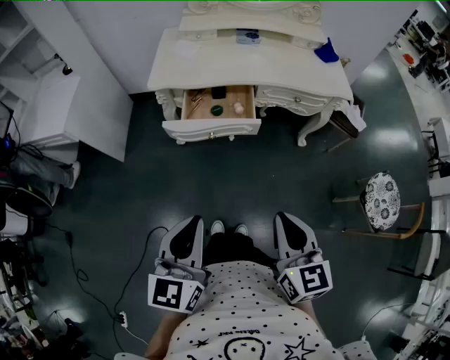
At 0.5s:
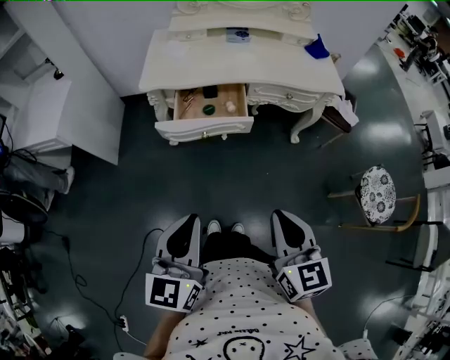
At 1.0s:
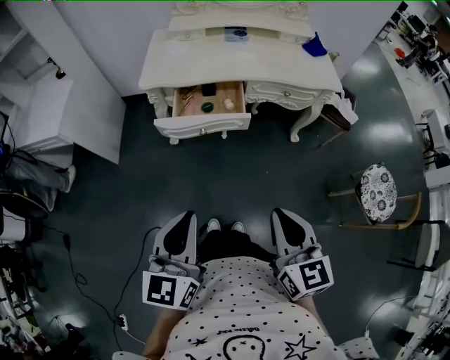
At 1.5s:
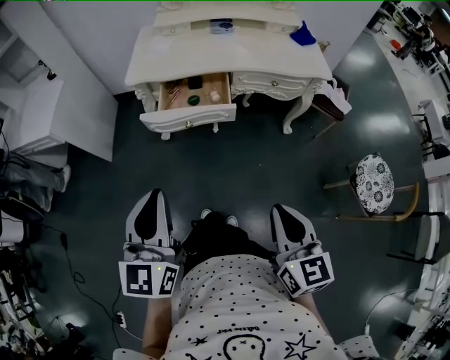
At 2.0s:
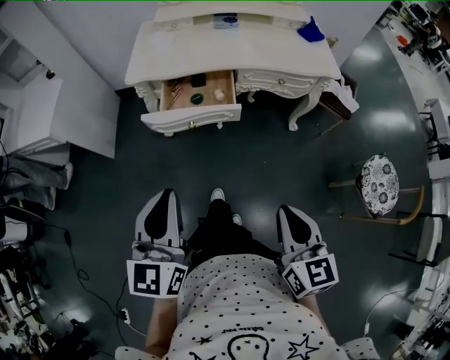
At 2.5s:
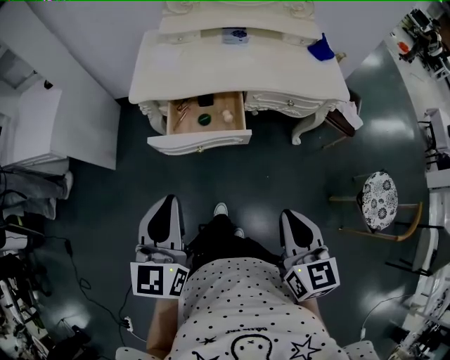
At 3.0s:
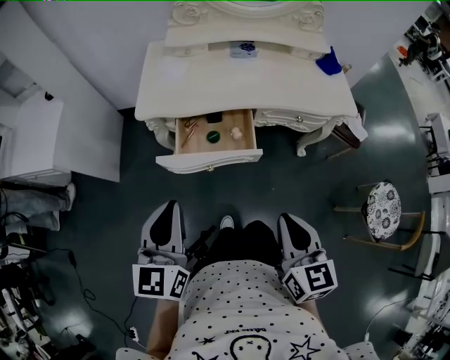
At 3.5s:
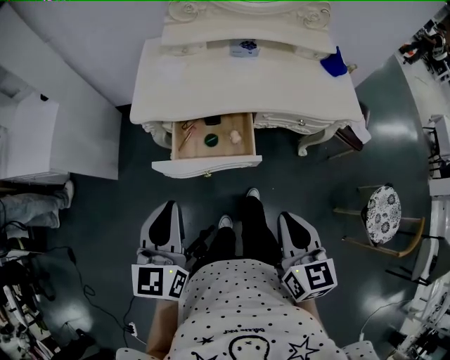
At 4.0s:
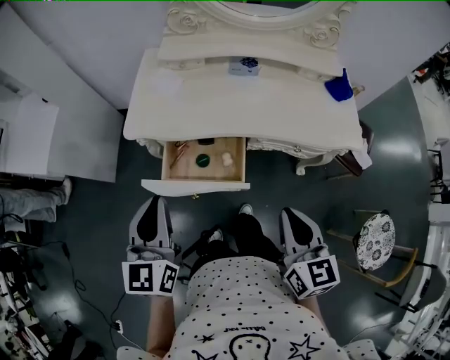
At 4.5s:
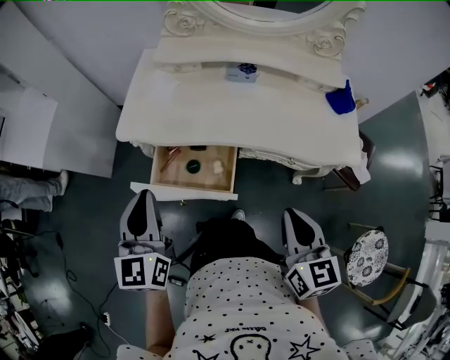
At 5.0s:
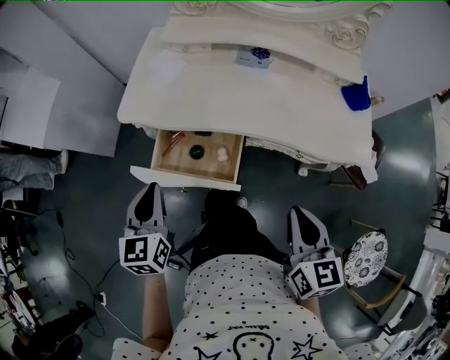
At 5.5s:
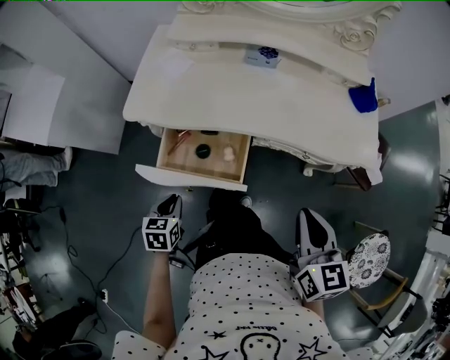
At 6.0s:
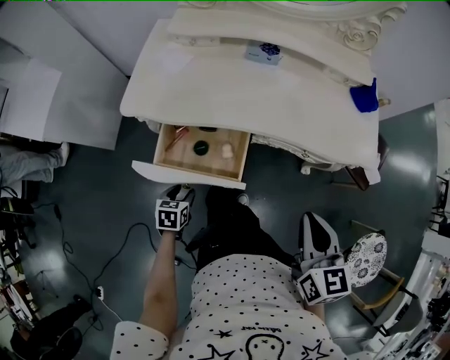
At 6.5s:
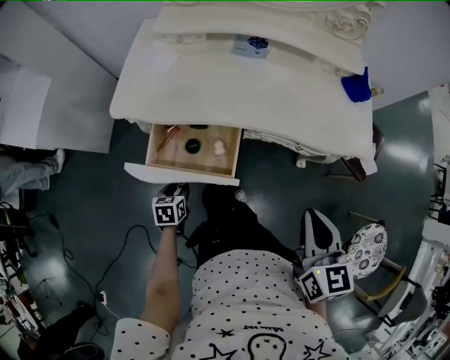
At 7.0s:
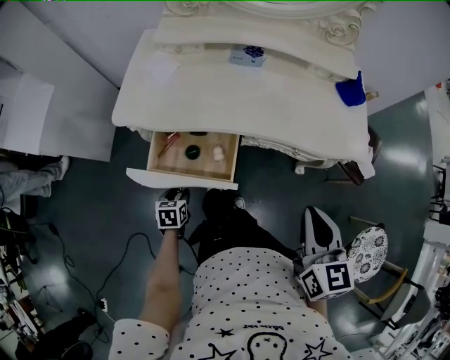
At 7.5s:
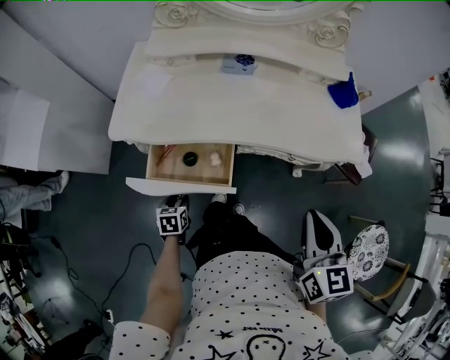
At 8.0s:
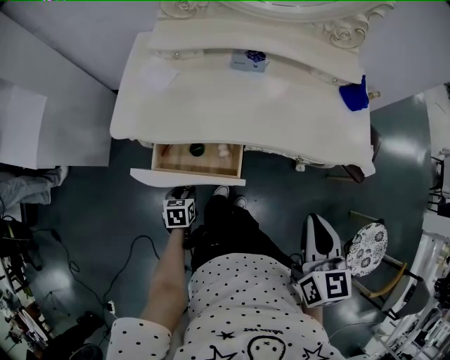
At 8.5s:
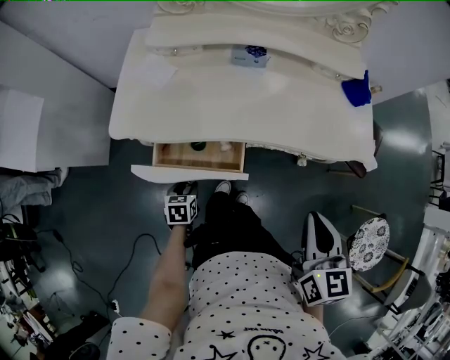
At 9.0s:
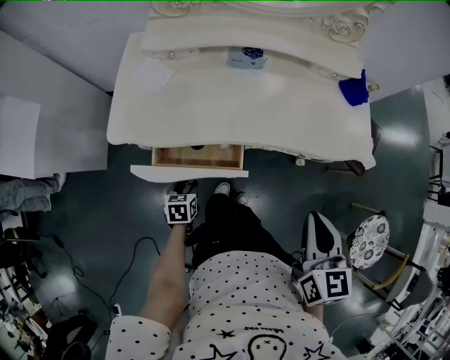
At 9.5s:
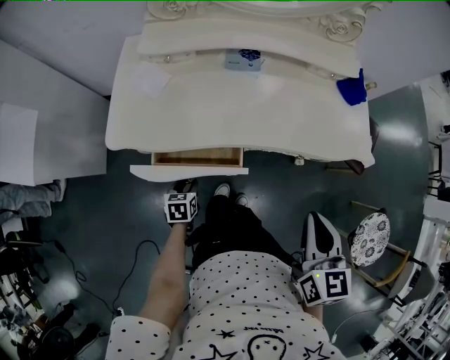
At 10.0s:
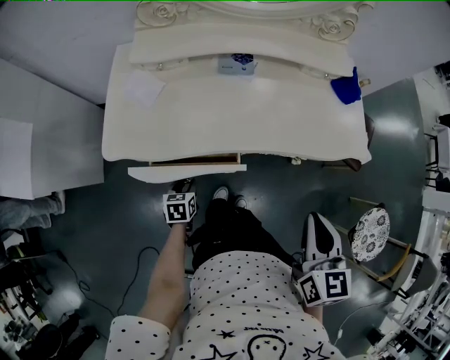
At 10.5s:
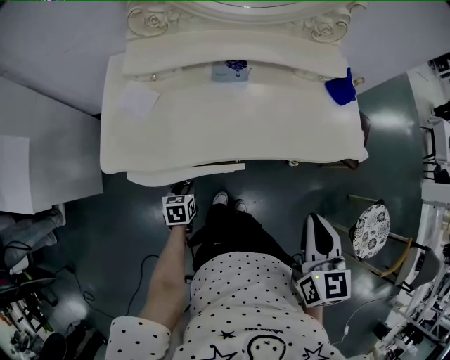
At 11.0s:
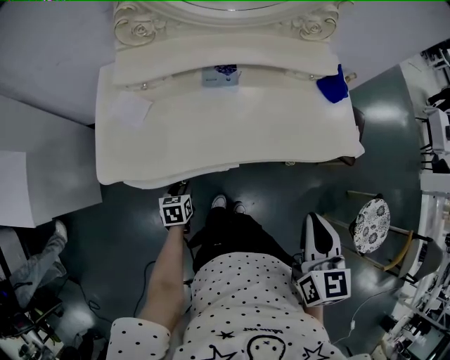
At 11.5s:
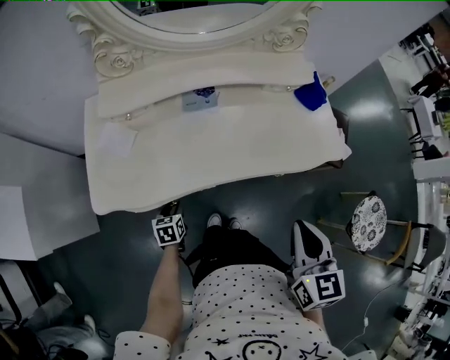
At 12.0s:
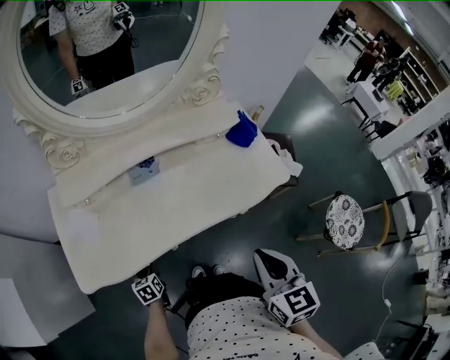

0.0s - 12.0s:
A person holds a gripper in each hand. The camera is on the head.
0.0s - 2.0s: The right gripper shifts some 5 cm to the right.
2.0s - 4.0s: Both grippers move forward, about 30 cm.
4.0s - 6.0s: The left gripper is displaced downward by about 35 cm, tips its fingers downward by approximately 50 degrees, and opens. Meanwhile the right gripper heads to the right, covering approximately 10 cm.
6.0s - 8.0s: The left gripper goes about 5 cm forward.
8.0s - 10.0s: The left gripper is displaced forward by roughly 5 cm.
10.0s - 12.0s: The left gripper travels forward by some 5 cm.

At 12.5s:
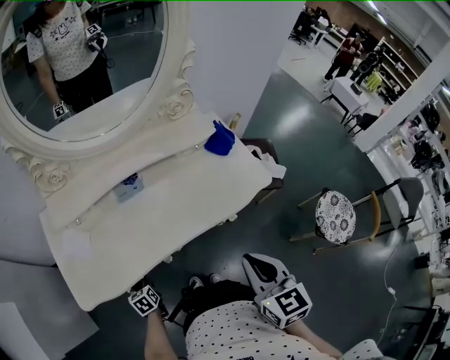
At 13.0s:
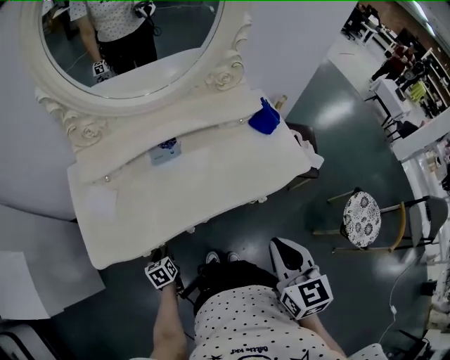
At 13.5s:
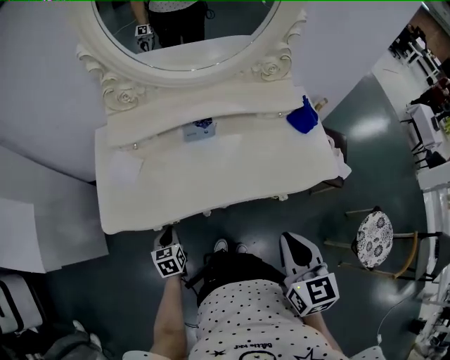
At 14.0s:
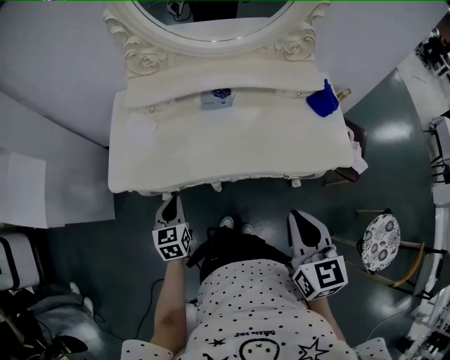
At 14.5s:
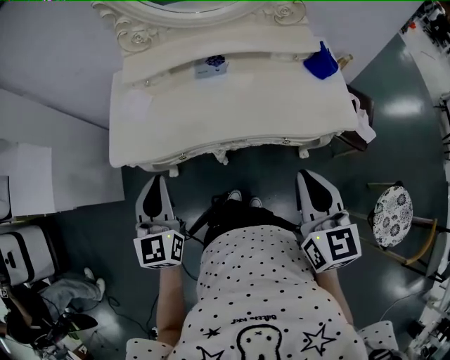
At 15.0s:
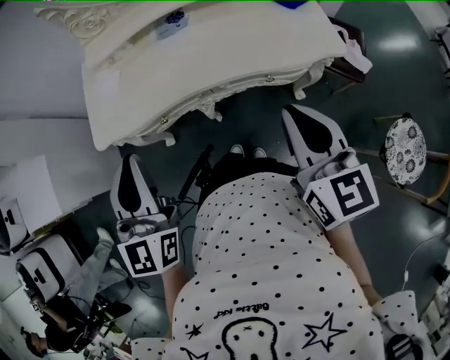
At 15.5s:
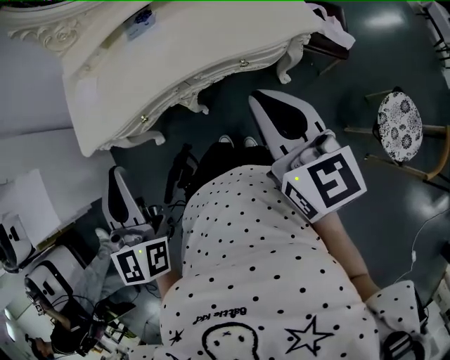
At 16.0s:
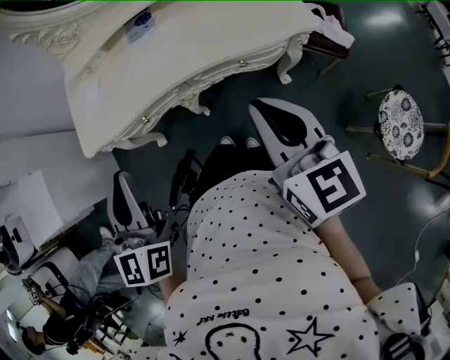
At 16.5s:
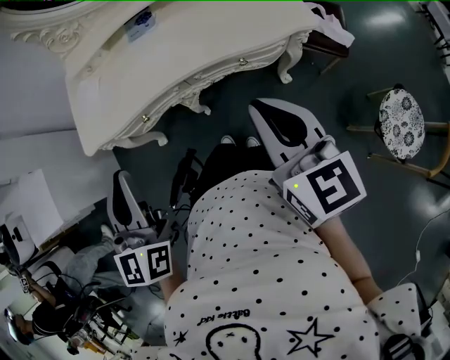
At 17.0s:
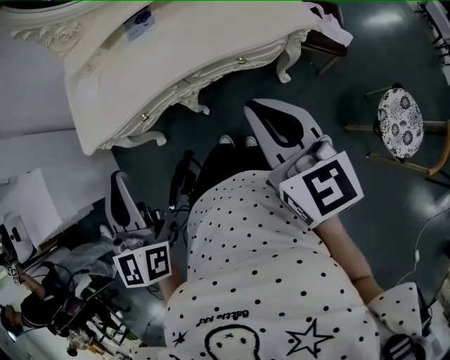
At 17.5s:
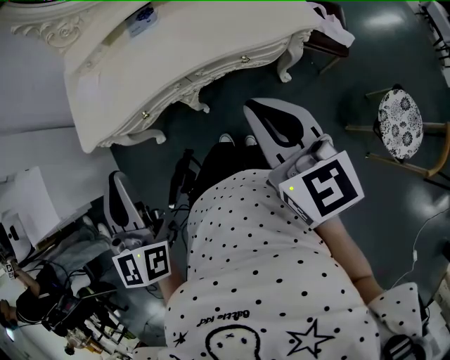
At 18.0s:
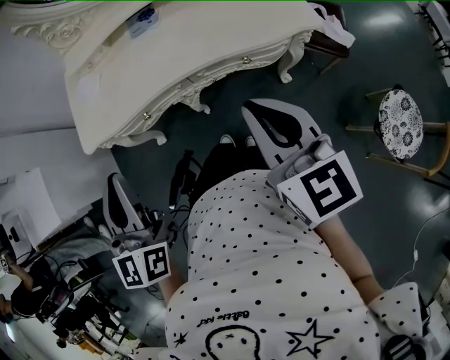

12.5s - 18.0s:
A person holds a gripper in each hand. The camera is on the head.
12.5s - 14.5s: The left gripper is displaced upward by some 35 cm, tips its fingers upward by about 40 degrees, and closes its fingers; the right gripper changes its angle by about 20 degrees.
14.5s - 16.0s: The left gripper shifts about 10 cm backward, to the right and upward; the right gripper shifts about 5 cm backward.
16.0s - 18.0s: There are only small adjustments of the grippers.

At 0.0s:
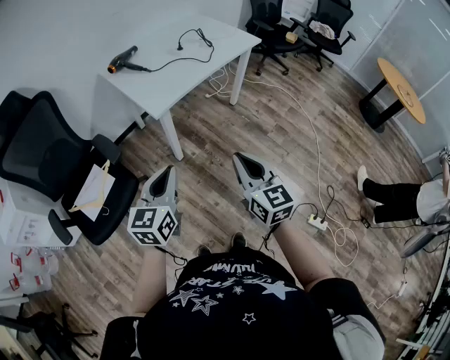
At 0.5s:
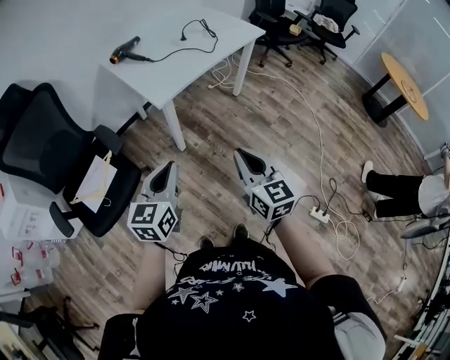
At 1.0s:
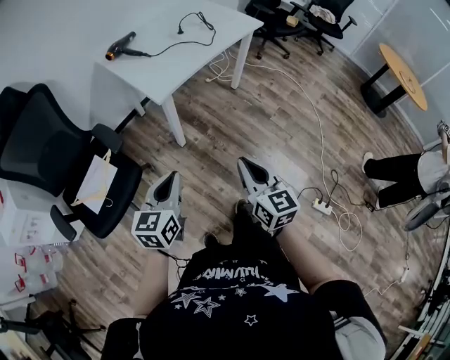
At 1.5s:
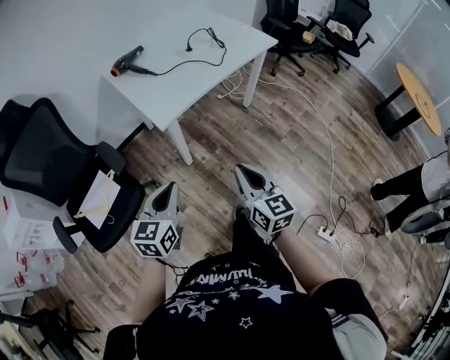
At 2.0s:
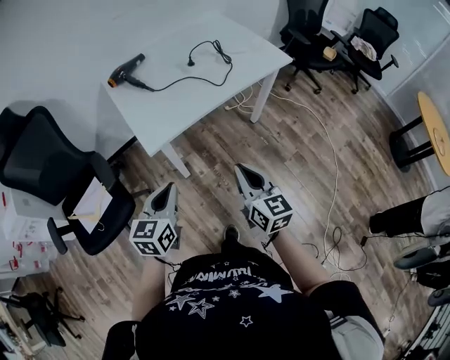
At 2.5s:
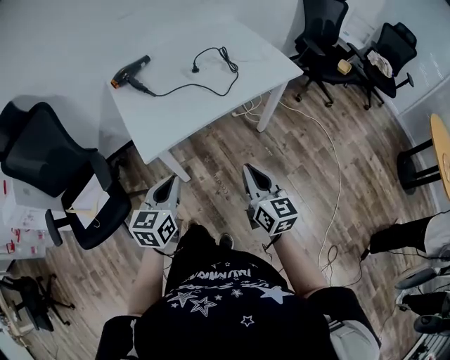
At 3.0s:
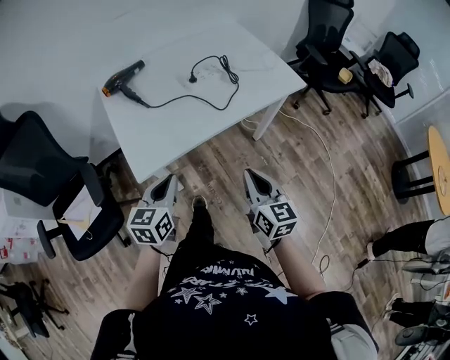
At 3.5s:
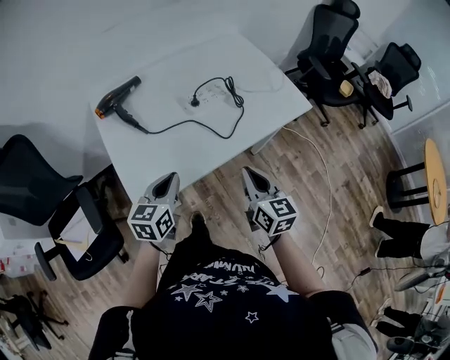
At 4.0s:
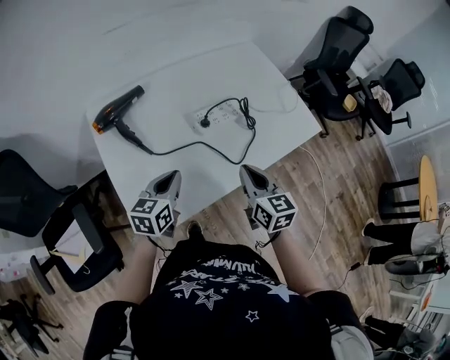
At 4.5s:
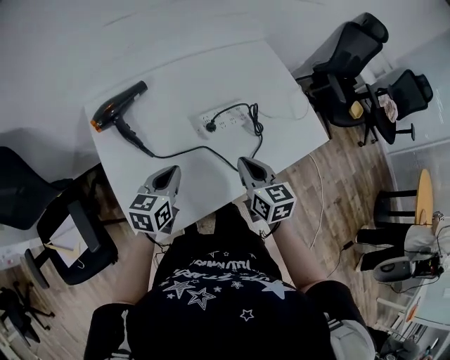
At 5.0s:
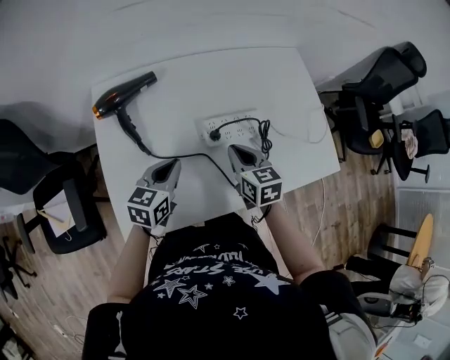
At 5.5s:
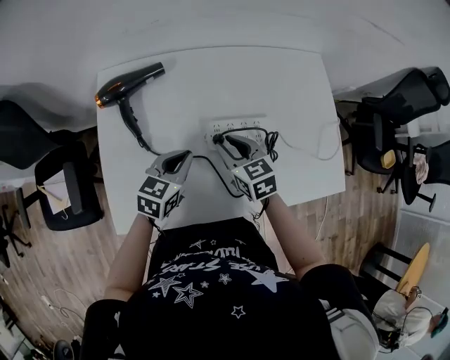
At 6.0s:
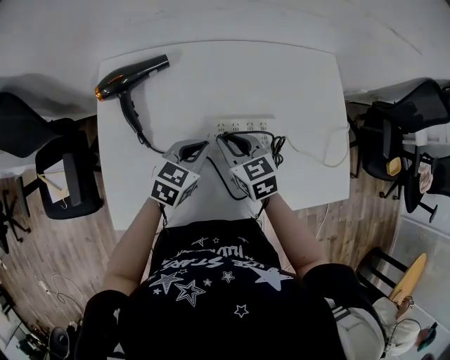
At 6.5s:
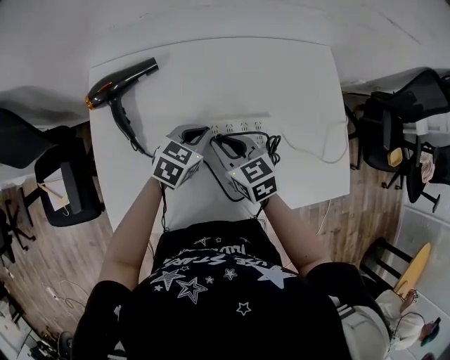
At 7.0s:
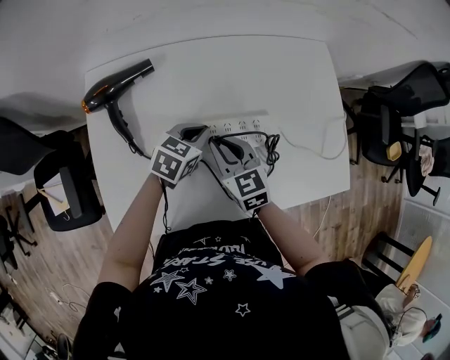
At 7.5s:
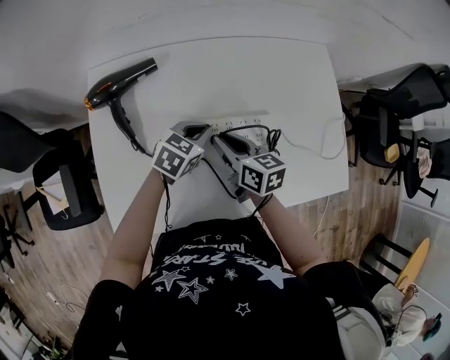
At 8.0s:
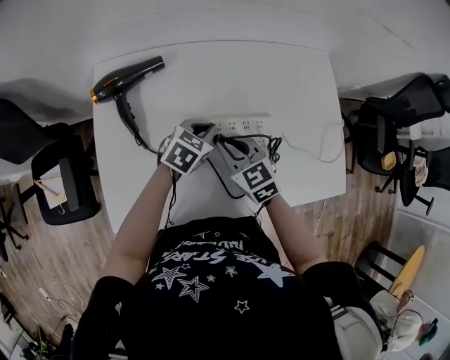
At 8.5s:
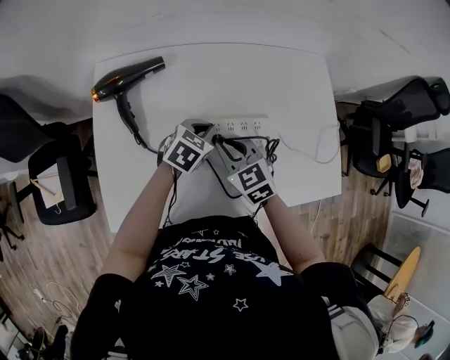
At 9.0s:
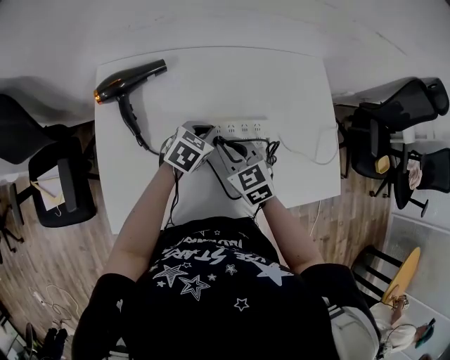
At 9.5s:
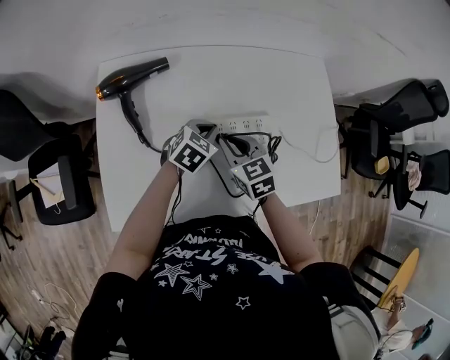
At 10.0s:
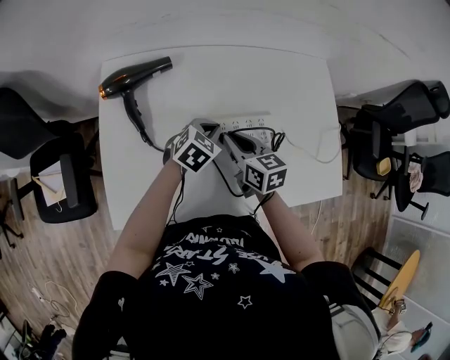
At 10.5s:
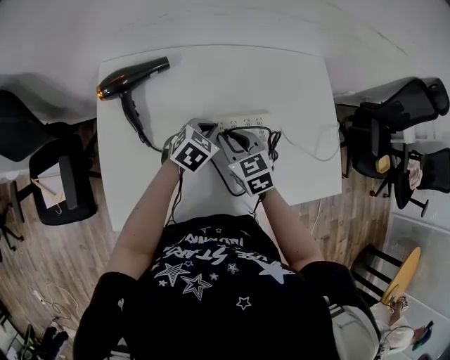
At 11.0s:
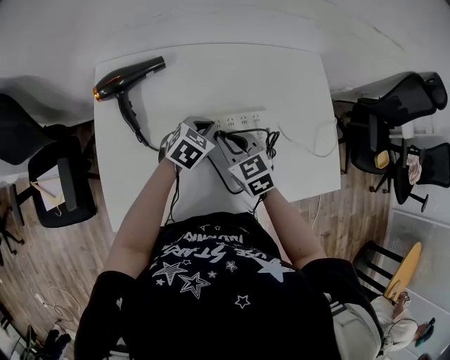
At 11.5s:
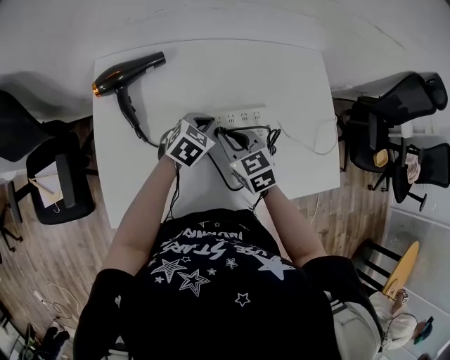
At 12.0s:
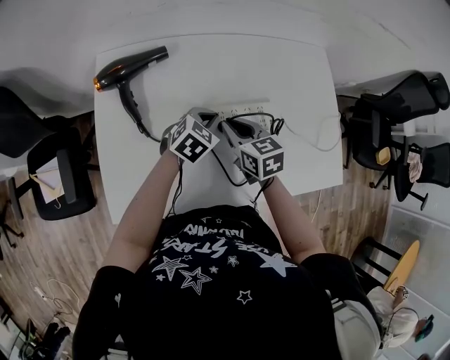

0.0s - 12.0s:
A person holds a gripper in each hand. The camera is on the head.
0.0s - 2.0s: The grippers both shift forward by roughly 20 cm.
2.0s - 4.0s: The two grippers travel together, forward, roughly 40 cm.
4.0s - 6.0s: The right gripper shifts some 25 cm forward and downward, and rotates roughly 40 degrees. Meanwhile the left gripper heads forward and to the right, covering approximately 20 cm.
6.0s - 8.0s: The left gripper moves forward, roughly 5 cm.
8.0s - 10.0s: The right gripper swivels about 30 degrees.
